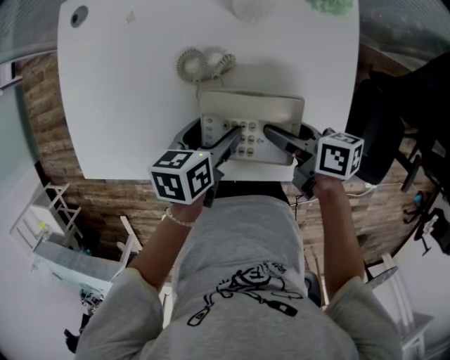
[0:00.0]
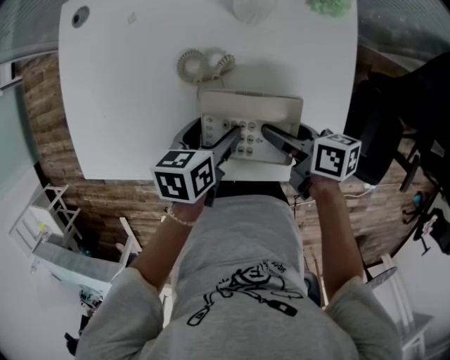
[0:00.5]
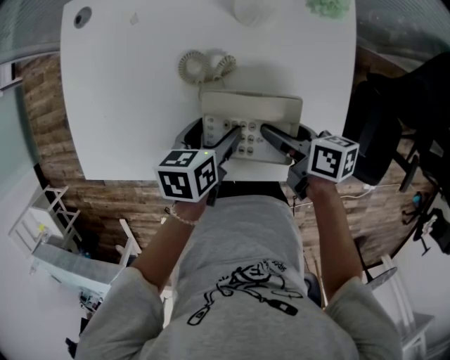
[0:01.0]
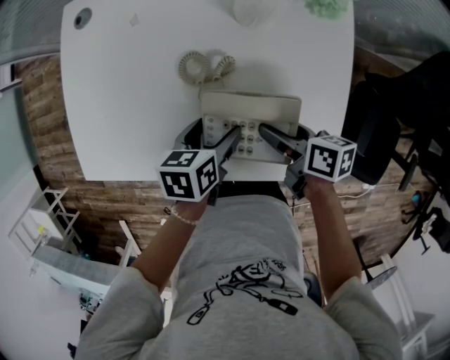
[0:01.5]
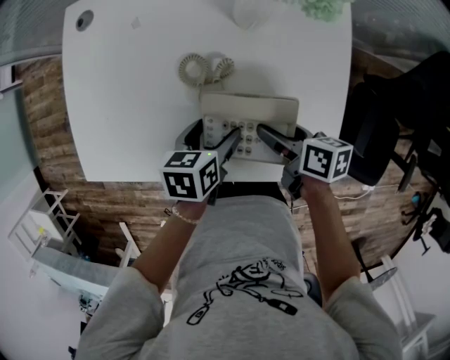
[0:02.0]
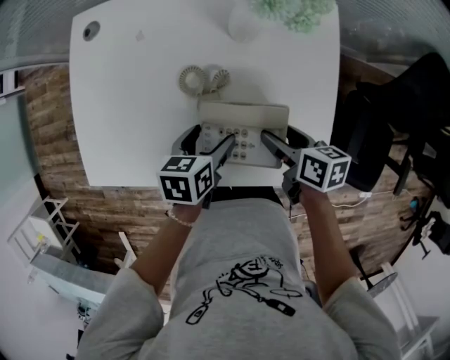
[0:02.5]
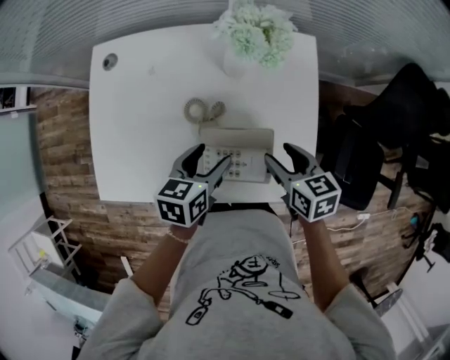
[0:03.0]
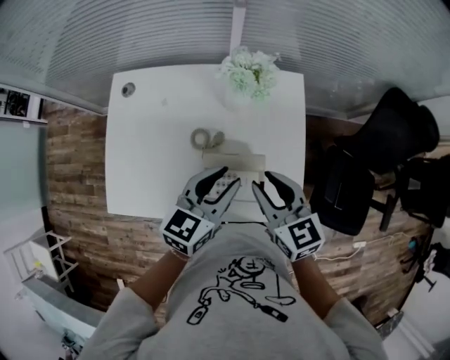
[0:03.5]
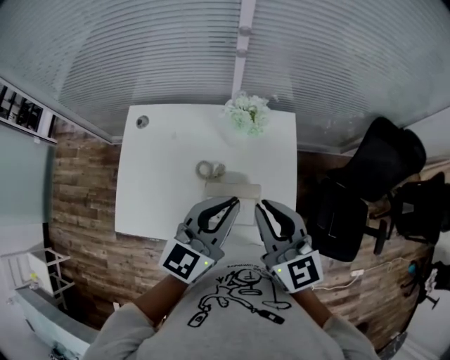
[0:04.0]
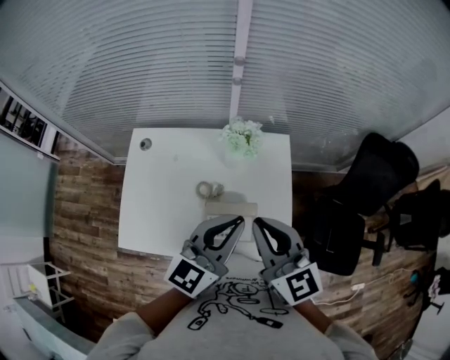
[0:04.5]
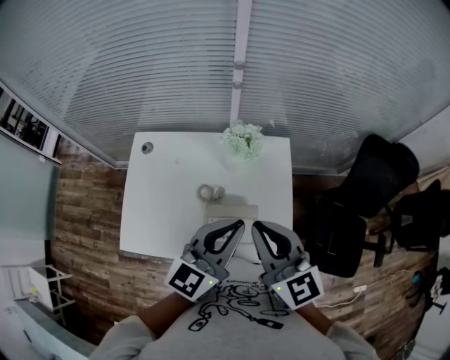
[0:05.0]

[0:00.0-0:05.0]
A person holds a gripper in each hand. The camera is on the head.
0.0 to 2.5 s: The grippers make only small movements.
2.5 to 5.0 s: The grippers both shift upward by about 40 cm. The left gripper tips its fingers upward by roughly 50 degrees, and closes. Meanwhile the right gripper points its fingers some 40 degrees further upward, and closes up.

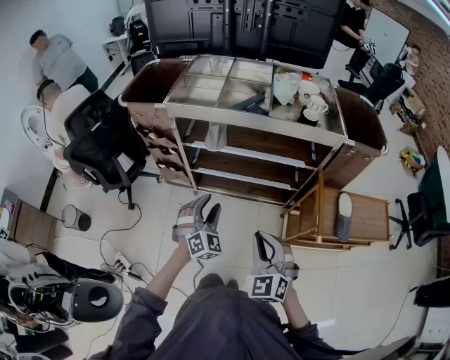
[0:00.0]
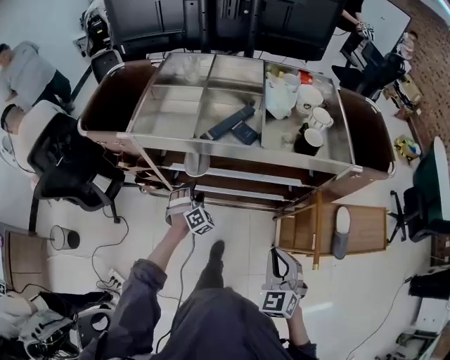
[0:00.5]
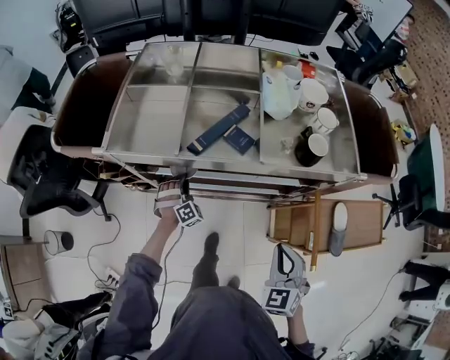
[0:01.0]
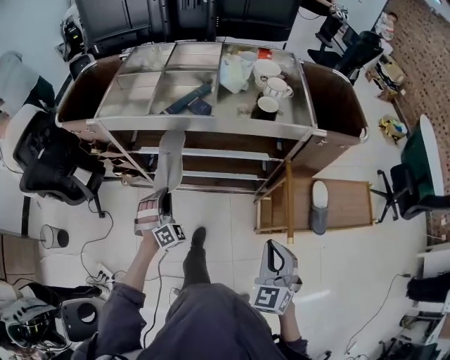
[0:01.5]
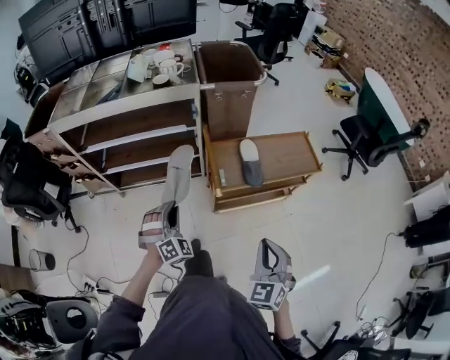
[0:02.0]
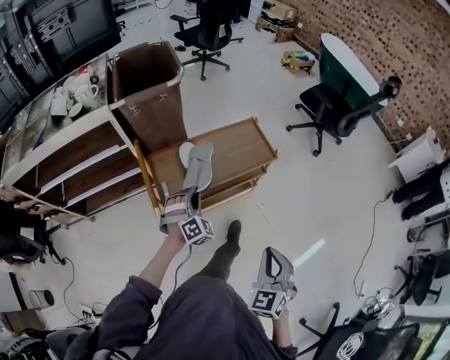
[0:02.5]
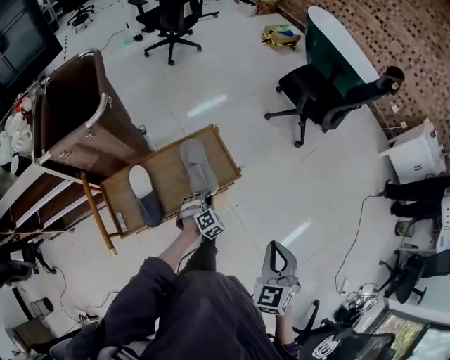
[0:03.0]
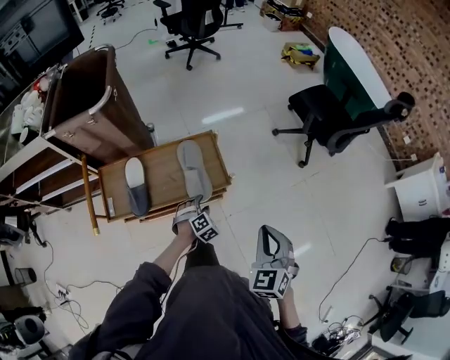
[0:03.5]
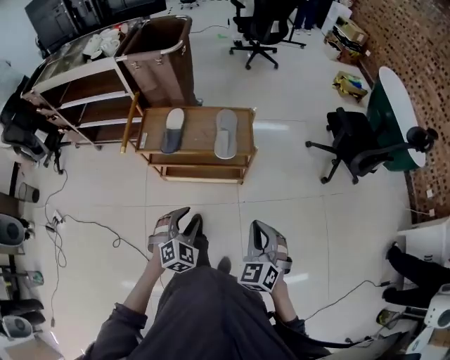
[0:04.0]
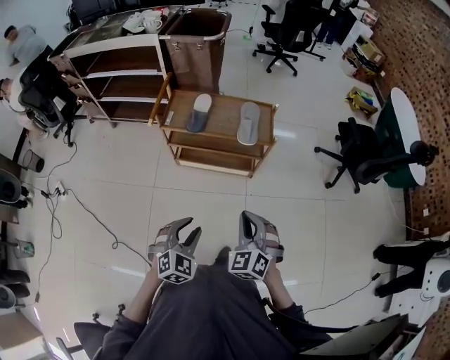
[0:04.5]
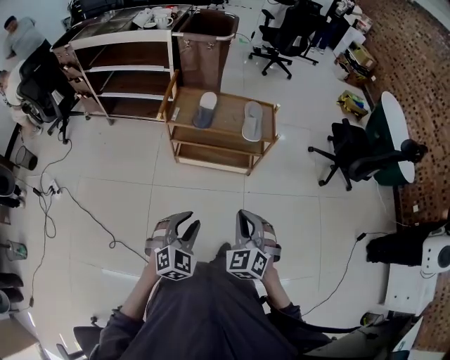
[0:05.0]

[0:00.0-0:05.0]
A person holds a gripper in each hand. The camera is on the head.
0.0 to 2.5 s: The two grippers travel together, roughly 70 cm. The right gripper swivels about 50 degrees. The left gripper changes its angle by approximately 30 degrees, and closes.
2.5 to 5.0 s: The left gripper goes downward and returns, roughly 15 cm each way, and changes its angle by some 30 degrees; the right gripper turns by about 50 degrees.

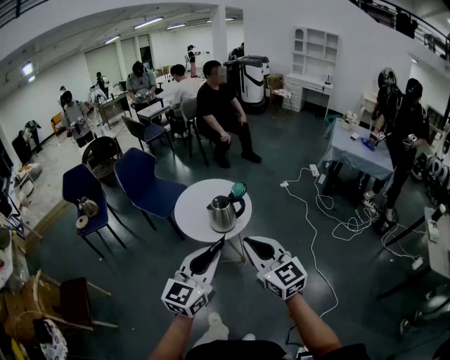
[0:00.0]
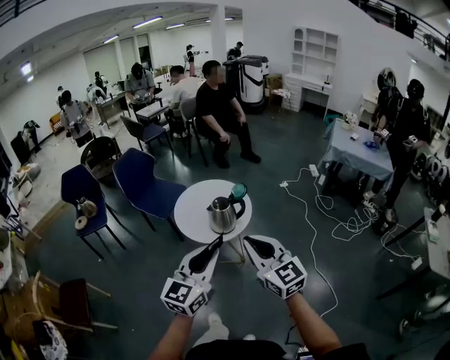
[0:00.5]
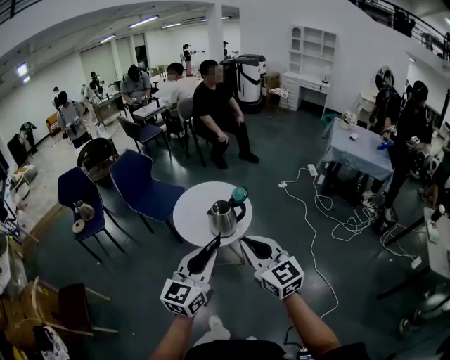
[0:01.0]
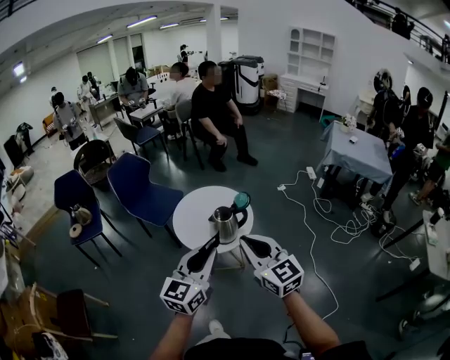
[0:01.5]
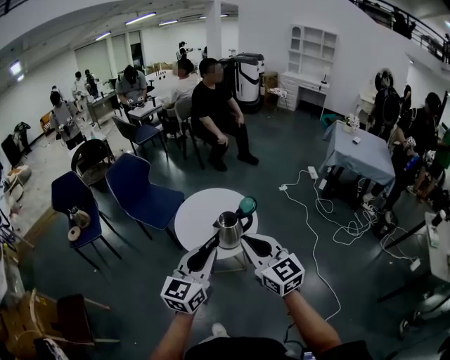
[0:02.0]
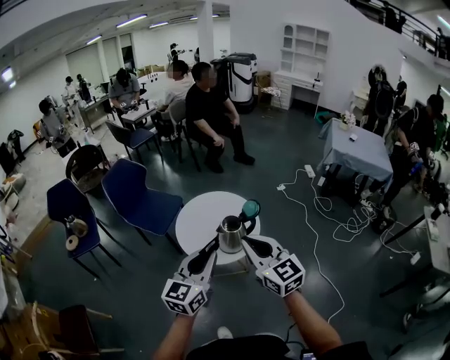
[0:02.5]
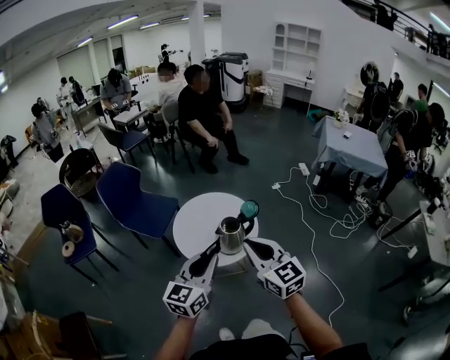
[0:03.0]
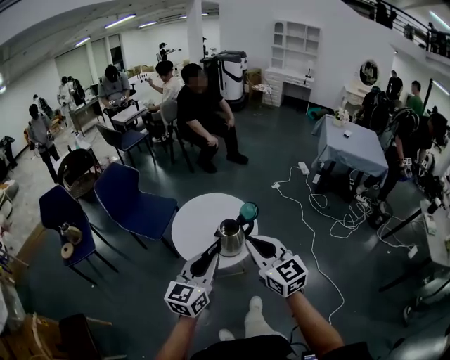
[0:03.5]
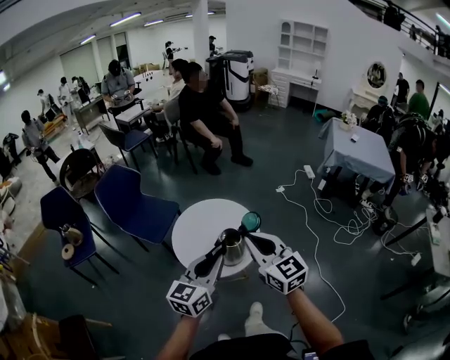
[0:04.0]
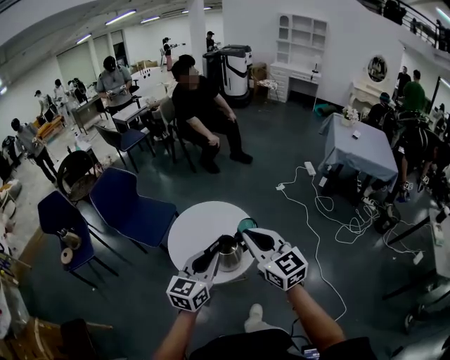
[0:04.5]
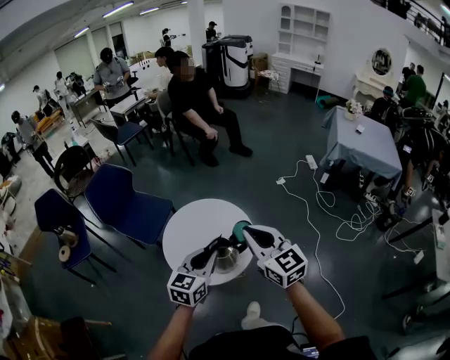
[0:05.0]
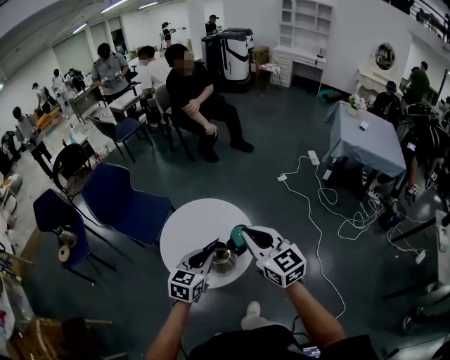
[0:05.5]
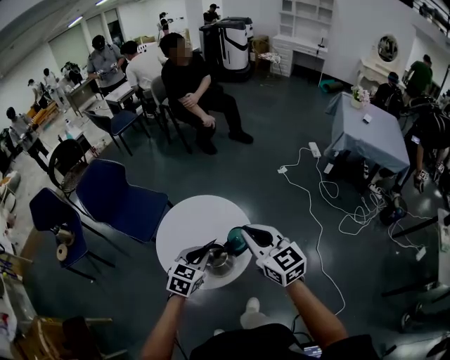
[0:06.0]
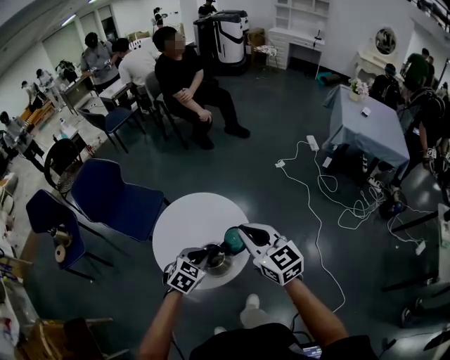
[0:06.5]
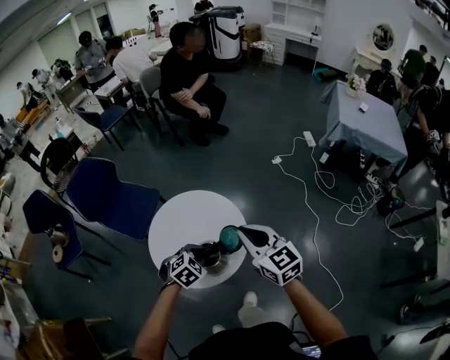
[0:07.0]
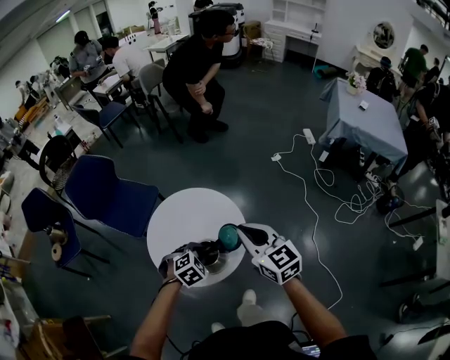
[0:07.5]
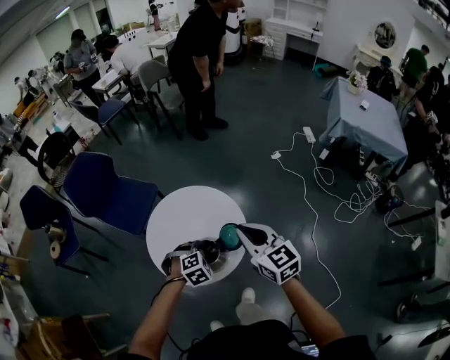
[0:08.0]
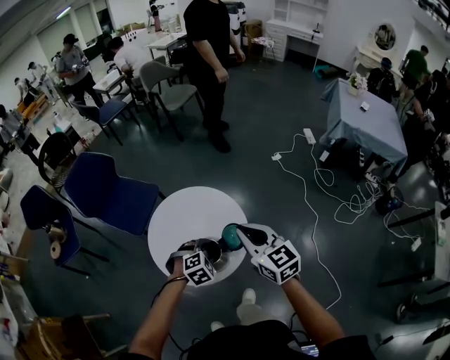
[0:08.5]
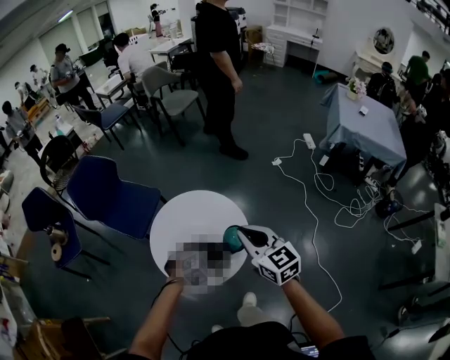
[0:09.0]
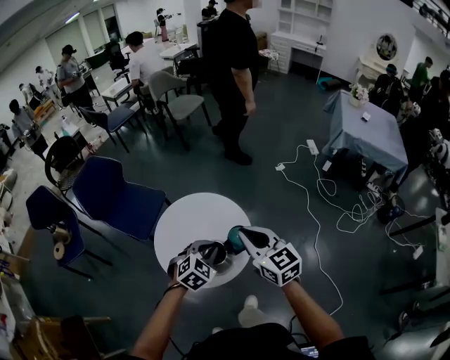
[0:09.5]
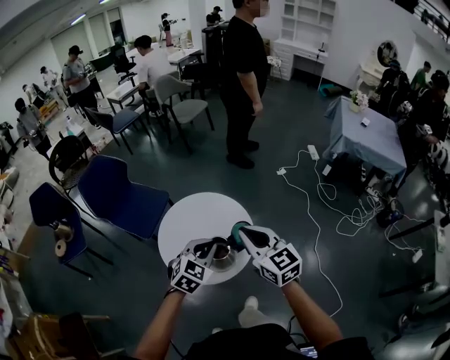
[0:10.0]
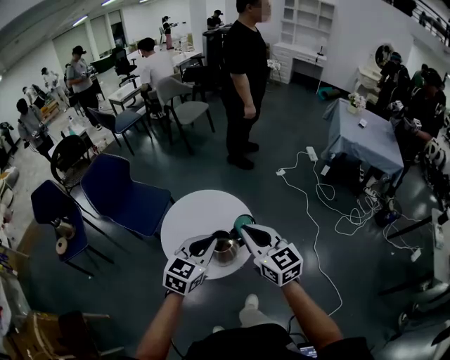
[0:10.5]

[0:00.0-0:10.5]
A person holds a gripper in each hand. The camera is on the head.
0.0 to 2.0 s: The grippers both shift forward and to the left by roughly 20 cm.
2.0 to 4.0 s: Both grippers travel together forward, roughly 15 cm.
4.0 to 6.5 s: The left gripper is displaced forward and downward by approximately 35 cm, and points its fingers roughly 50 degrees further downward. The right gripper is displaced forward and to the right by about 25 cm.
6.5 to 8.5 s: The left gripper shifts some 5 cm downward, turns by roughly 30 degrees, and opens its fingers.
8.5 to 10.5 s: The left gripper moves upward and backward, approximately 25 cm, tilts its fingers about 40 degrees upward, and closes up. The right gripper shifts some 15 cm backward, upward and to the left.

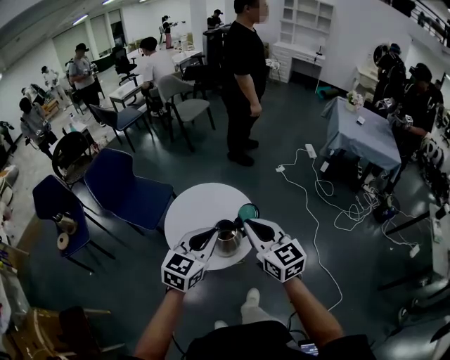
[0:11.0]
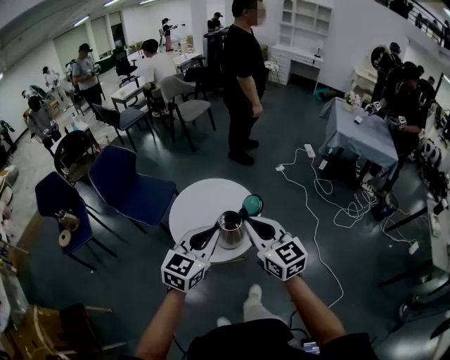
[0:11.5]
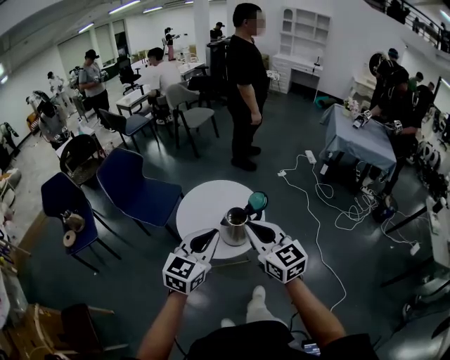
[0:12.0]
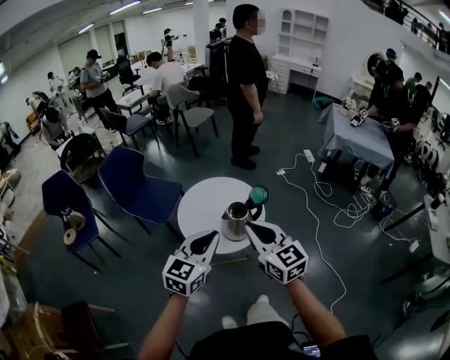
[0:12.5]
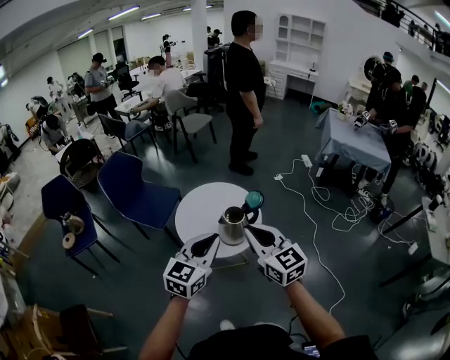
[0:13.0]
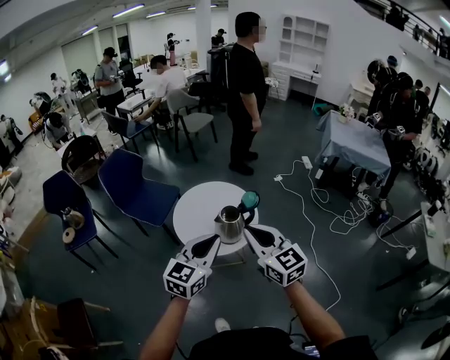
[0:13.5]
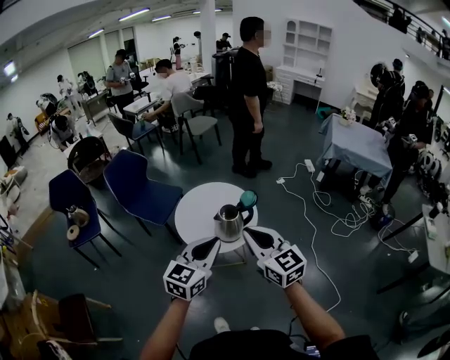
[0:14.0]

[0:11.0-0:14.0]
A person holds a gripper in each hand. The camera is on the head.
11.0 to 12.5 s: The two grippers go approximately 20 cm backward and to the left.
12.5 to 14.0 s: The grippers both shift backward and to the right by about 10 cm.

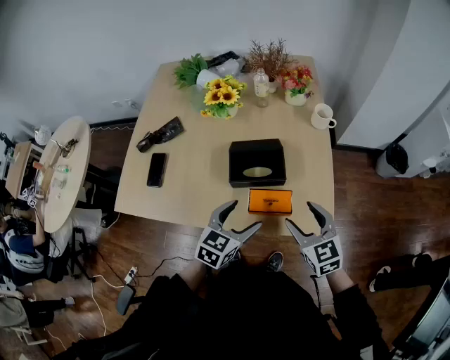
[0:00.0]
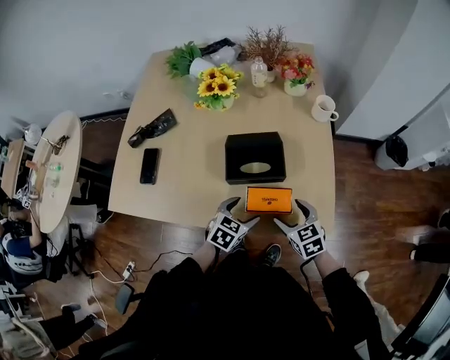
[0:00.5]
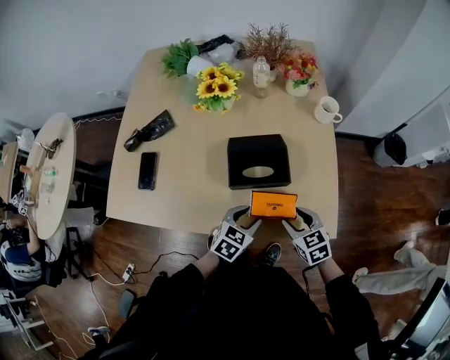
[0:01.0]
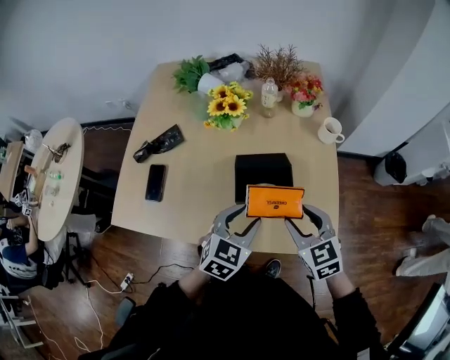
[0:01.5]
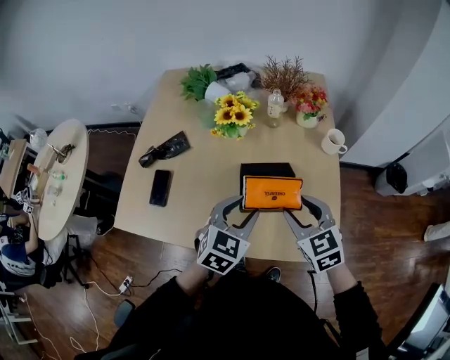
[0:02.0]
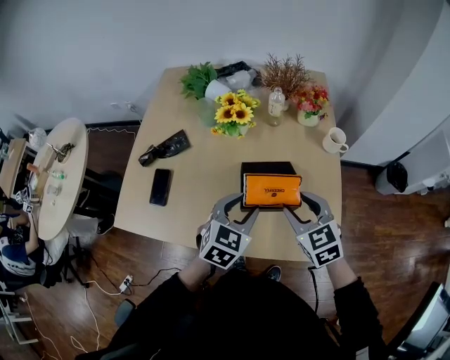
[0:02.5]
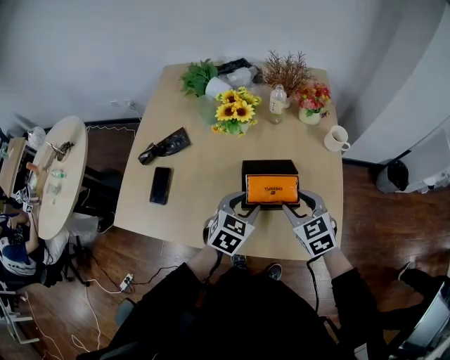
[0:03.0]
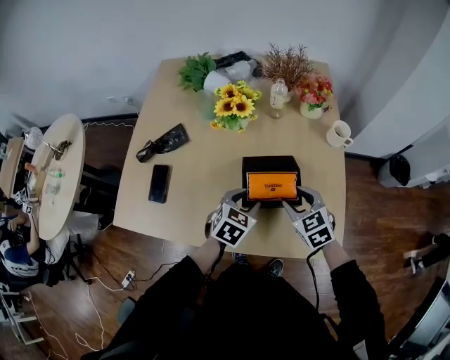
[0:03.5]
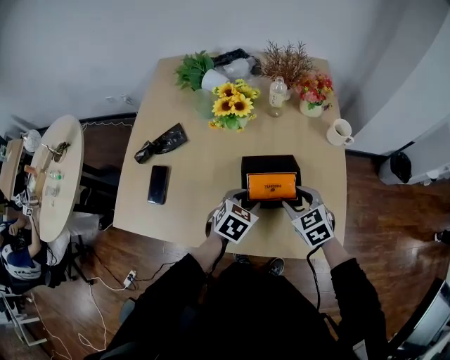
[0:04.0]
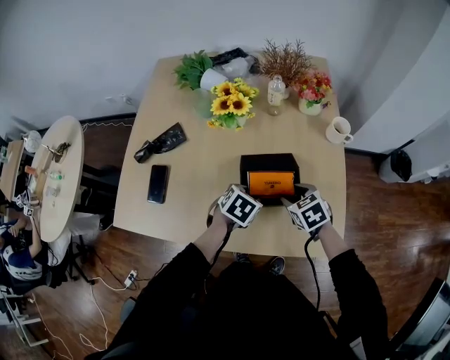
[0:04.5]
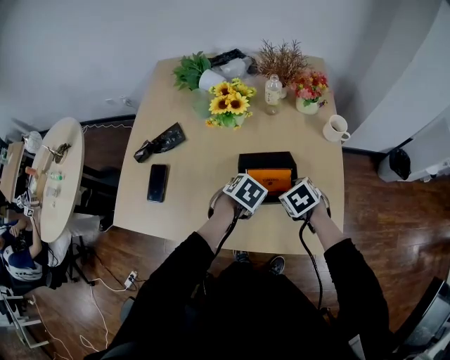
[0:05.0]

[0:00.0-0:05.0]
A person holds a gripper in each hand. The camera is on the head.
0.0 to 2.5 s: The left gripper shifts some 10 cm forward, travels downward and back again, roughly 10 cm each way, and closes up; the right gripper heads forward and to the left, covering approximately 15 cm, and goes downward and returns, about 15 cm each way.
2.5 to 5.0 s: Both grippers move downward, about 15 cm. The left gripper points its fingers some 40 degrees further downward. Meanwhile the right gripper points its fingers roughly 30 degrees further downward.
